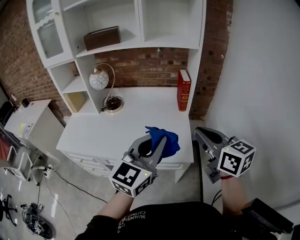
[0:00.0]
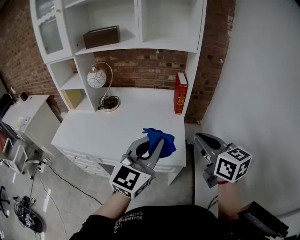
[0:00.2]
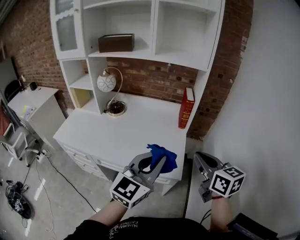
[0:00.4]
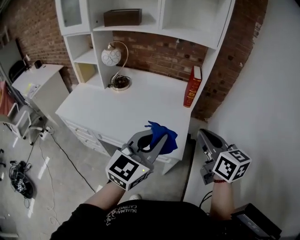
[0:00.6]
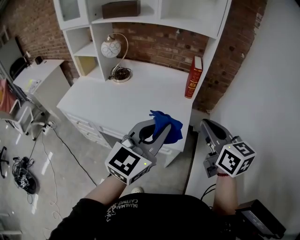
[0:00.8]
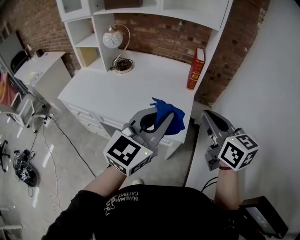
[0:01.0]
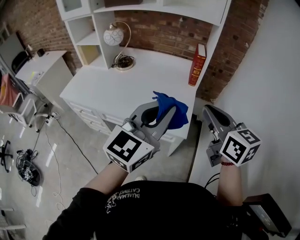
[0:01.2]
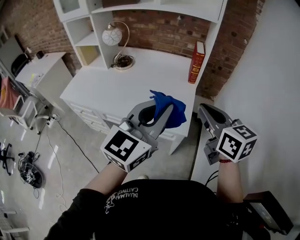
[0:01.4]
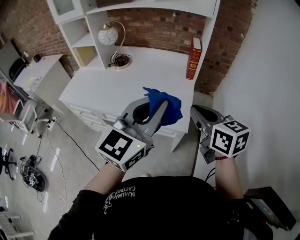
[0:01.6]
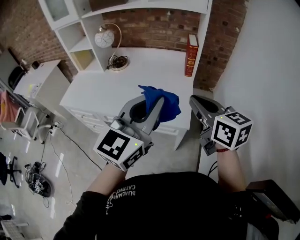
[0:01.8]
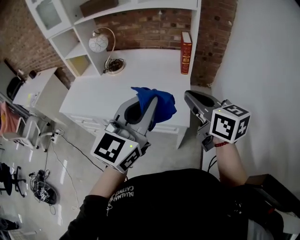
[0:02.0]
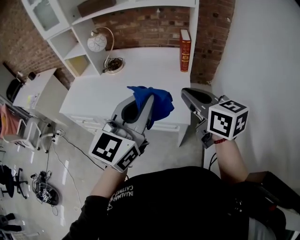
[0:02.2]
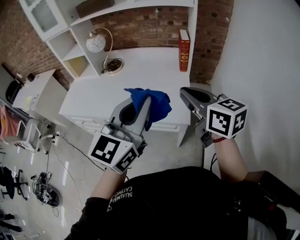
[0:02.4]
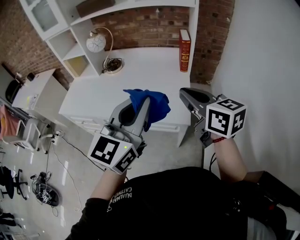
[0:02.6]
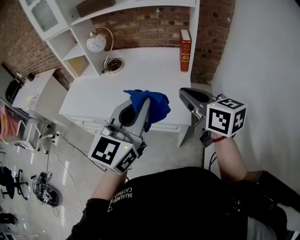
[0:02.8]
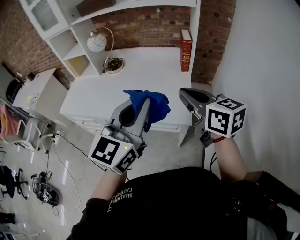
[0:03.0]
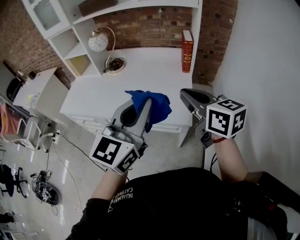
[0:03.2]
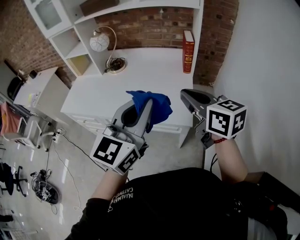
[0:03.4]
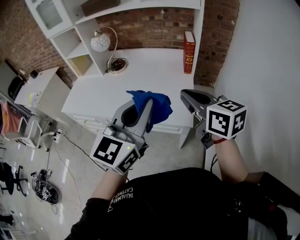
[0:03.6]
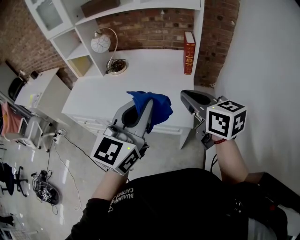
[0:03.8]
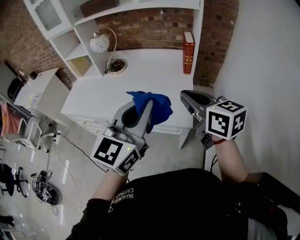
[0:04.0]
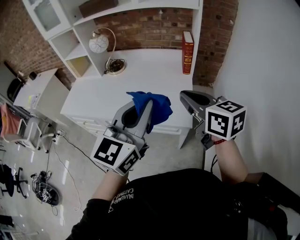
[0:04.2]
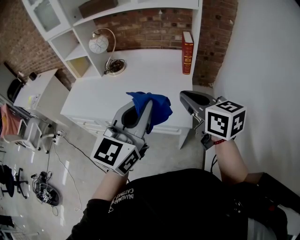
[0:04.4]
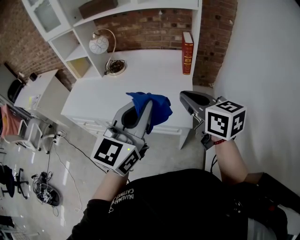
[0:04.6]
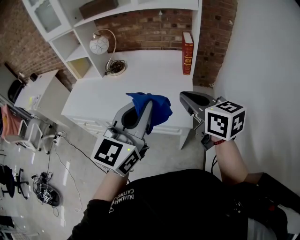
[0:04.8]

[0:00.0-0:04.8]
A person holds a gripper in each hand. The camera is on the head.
0:00.0 to 0:01.6: The left gripper shifts approximately 5 cm to the right; the right gripper goes some 5 cm downward.
0:01.6 to 0:03.2: The right gripper changes place by some 5 cm. The left gripper goes roughly 5 cm to the left.
0:03.2 to 0:04.8: Both grippers stay put.

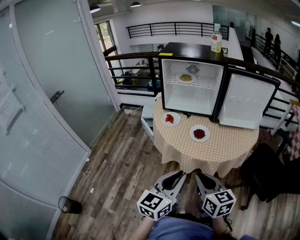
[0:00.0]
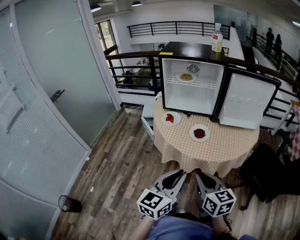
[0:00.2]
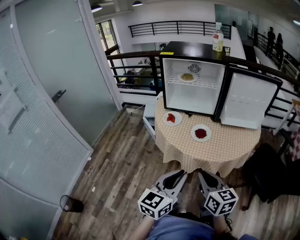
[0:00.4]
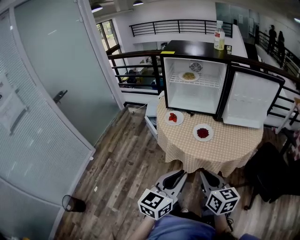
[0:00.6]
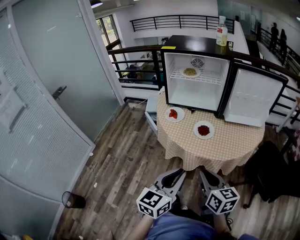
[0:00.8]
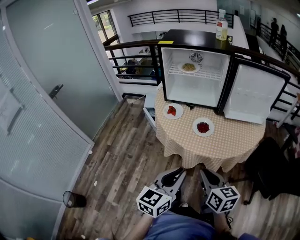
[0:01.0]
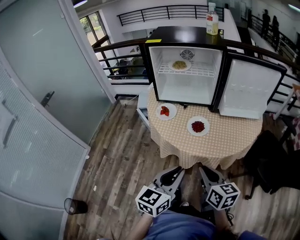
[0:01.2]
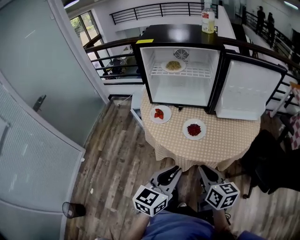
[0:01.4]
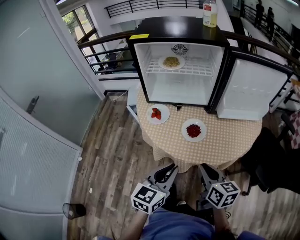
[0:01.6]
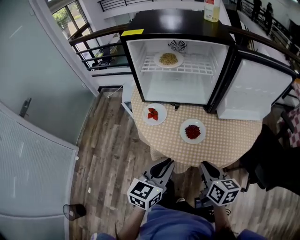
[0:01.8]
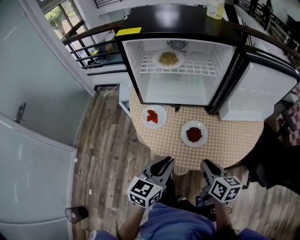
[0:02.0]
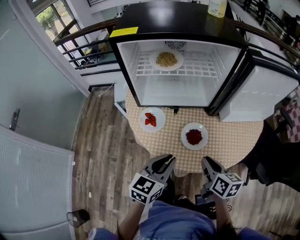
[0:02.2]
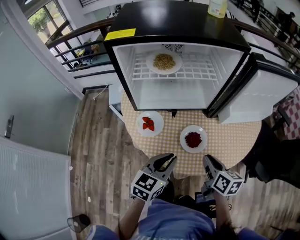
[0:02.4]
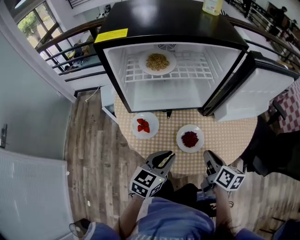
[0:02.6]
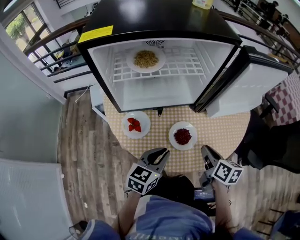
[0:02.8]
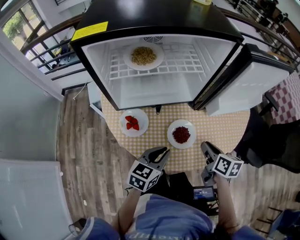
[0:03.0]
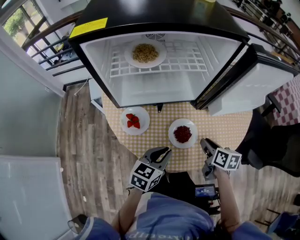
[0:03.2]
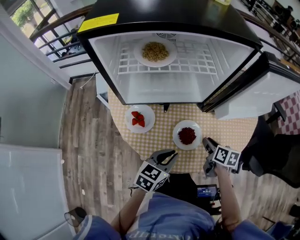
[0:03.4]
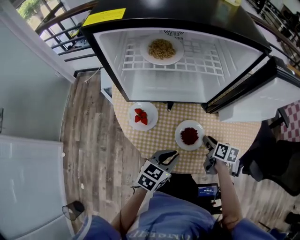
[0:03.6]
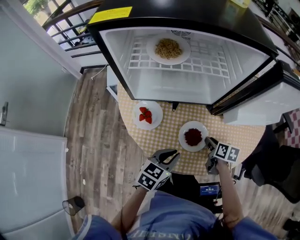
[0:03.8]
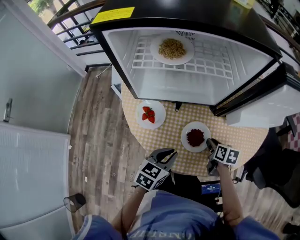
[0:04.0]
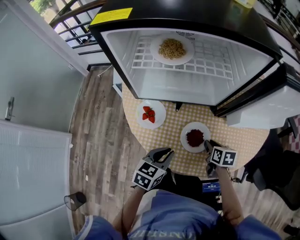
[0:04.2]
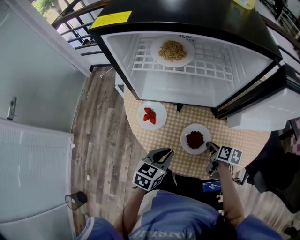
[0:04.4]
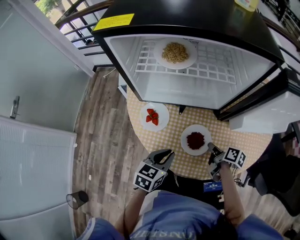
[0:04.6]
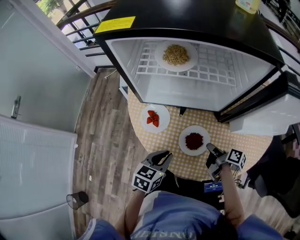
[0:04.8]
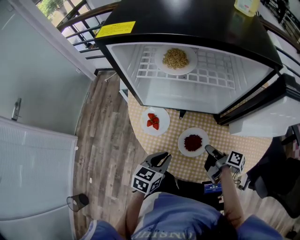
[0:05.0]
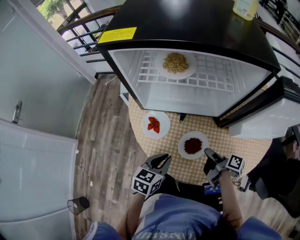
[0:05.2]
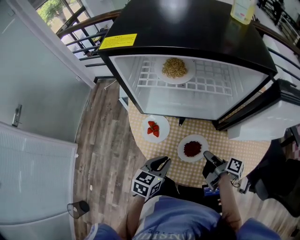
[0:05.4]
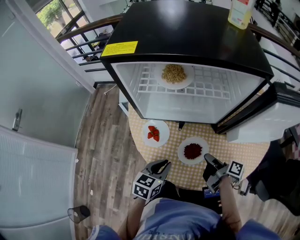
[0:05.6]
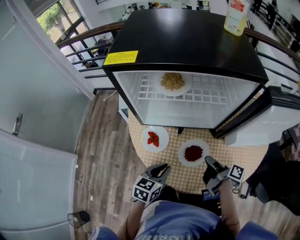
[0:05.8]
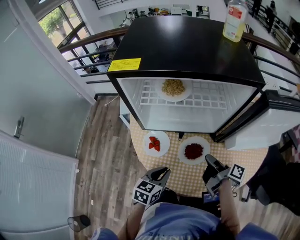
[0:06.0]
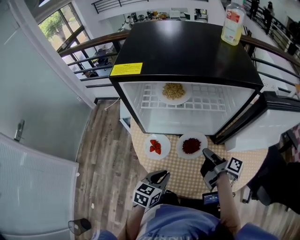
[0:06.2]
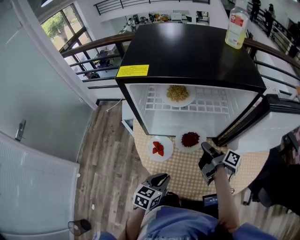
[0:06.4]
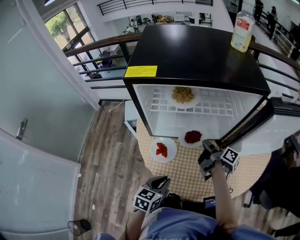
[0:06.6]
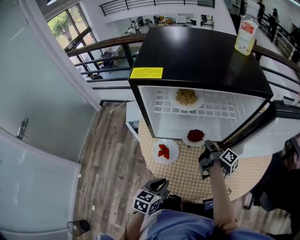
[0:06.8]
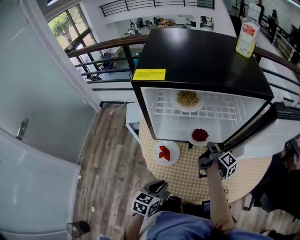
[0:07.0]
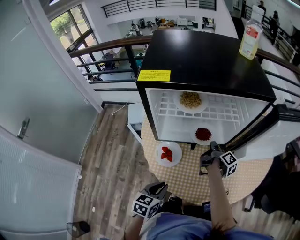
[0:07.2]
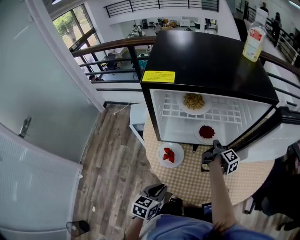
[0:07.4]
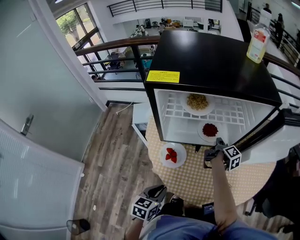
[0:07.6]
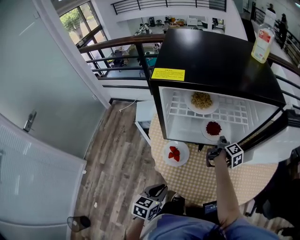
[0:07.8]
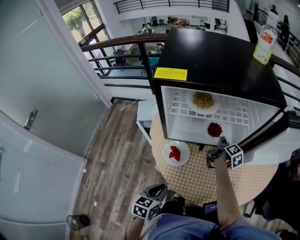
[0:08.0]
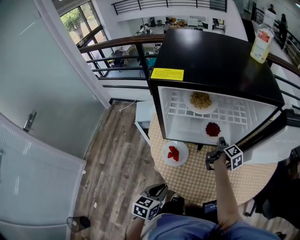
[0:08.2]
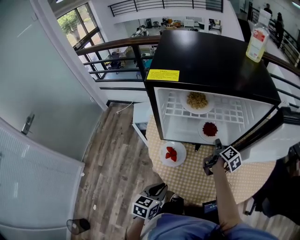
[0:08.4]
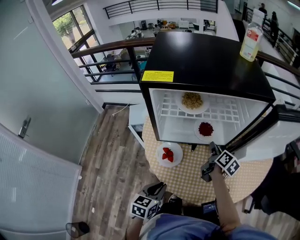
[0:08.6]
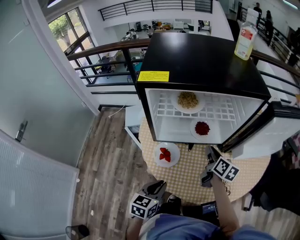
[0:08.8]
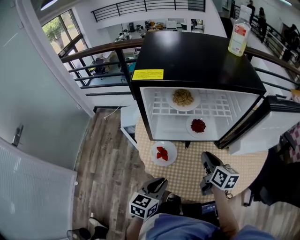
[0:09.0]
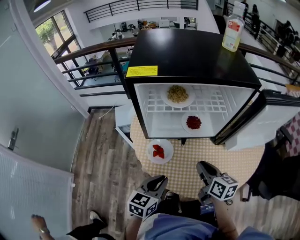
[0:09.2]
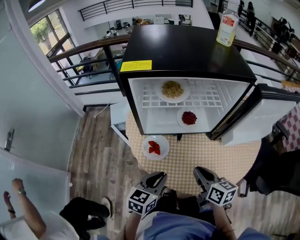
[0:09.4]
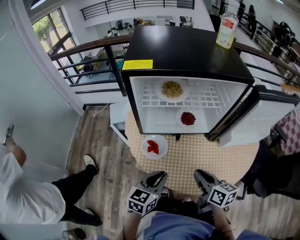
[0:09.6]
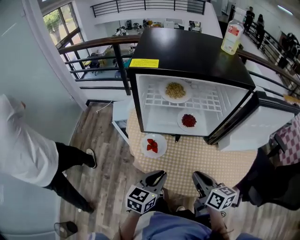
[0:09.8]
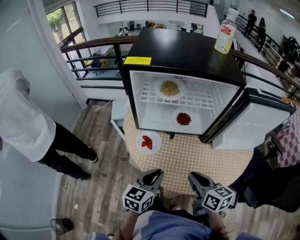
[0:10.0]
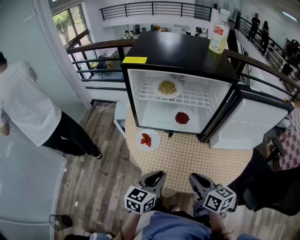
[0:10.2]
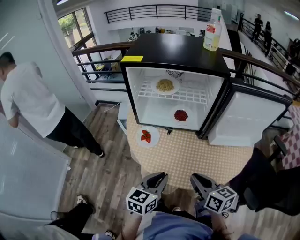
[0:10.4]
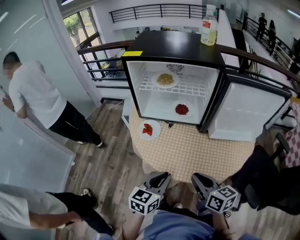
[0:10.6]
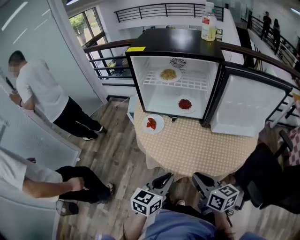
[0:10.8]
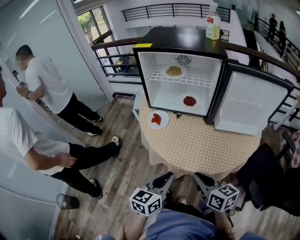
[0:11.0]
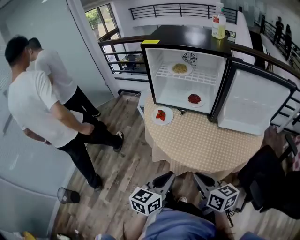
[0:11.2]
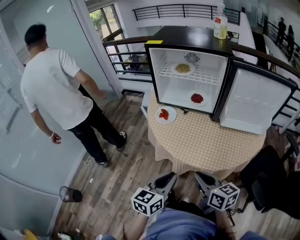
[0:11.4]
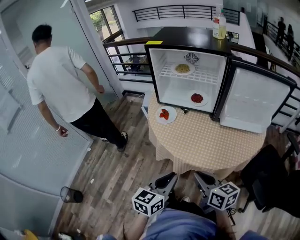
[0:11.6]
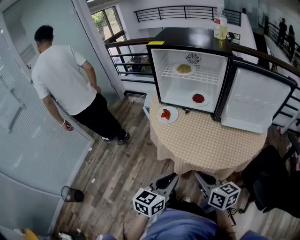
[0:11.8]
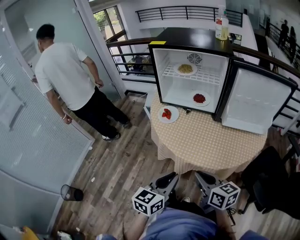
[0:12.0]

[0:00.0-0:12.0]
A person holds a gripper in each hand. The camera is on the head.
0:00.0 to 0:01.6: The two grippers go about 15 cm forward and downward.
0:01.6 to 0:03.0: Both grippers move forward and downward, some 20 cm. The right gripper swivels about 30 degrees, while the left gripper changes its angle by roughly 20 degrees.
0:03.0 to 0:04.4: The right gripper shifts some 15 cm downward and forward, and changes its angle by about 20 degrees.
0:04.4 to 0:06.0: The right gripper travels upward by roughly 15 cm, and angles its fingers upward, by about 30 degrees.
0:06.0 to 0:07.6: The left gripper travels to the left and backward by about 10 cm, while the right gripper travels forward by approximately 15 cm, and swivels approximately 40 degrees.
0:07.6 to 0:09.0: The left gripper heads upward, covering roughly 5 cm, while the right gripper travels backward and upward by approximately 15 cm, and rolls counterclockwise, seen from behind, by about 50 degrees.
0:09.0 to 0:10.4: The right gripper is displaced backward by some 20 cm, and swivels approximately 20 degrees. The left gripper heads to the right and backward, covering some 15 cm.
0:10.4 to 0:12.0: The grippers both shift backward by approximately 15 cm.

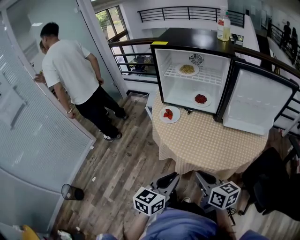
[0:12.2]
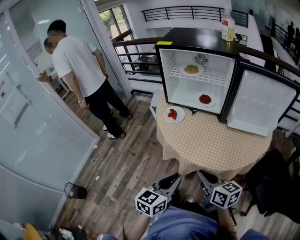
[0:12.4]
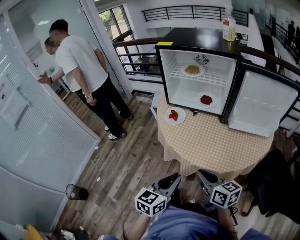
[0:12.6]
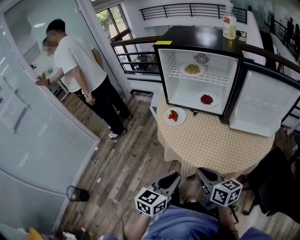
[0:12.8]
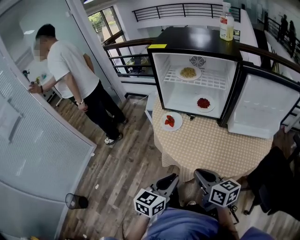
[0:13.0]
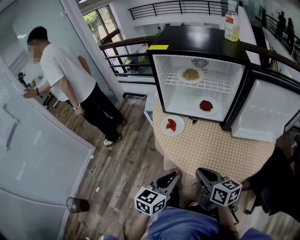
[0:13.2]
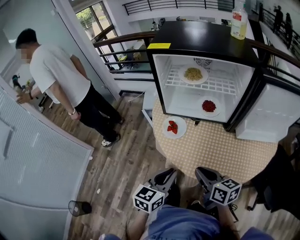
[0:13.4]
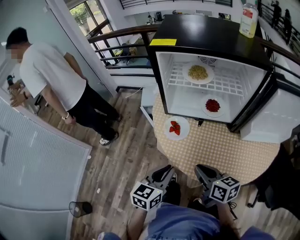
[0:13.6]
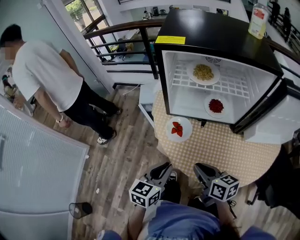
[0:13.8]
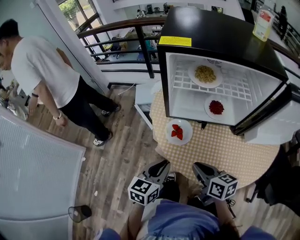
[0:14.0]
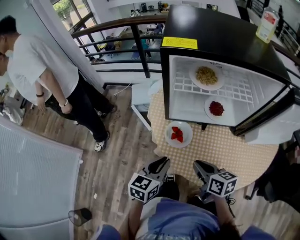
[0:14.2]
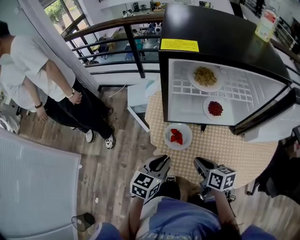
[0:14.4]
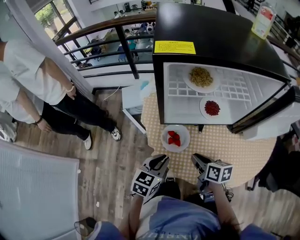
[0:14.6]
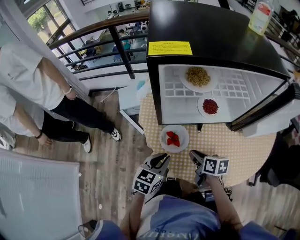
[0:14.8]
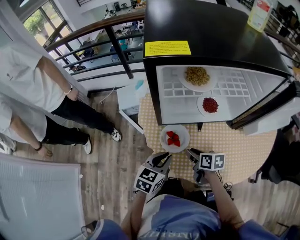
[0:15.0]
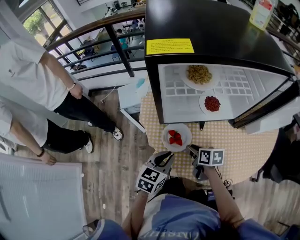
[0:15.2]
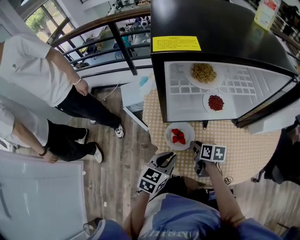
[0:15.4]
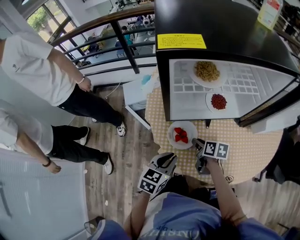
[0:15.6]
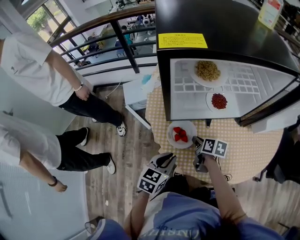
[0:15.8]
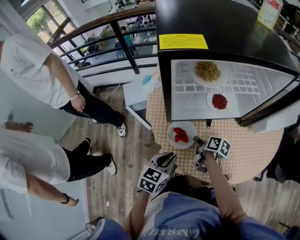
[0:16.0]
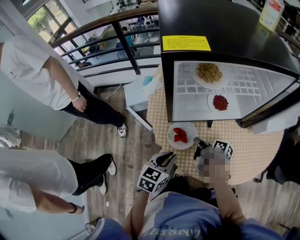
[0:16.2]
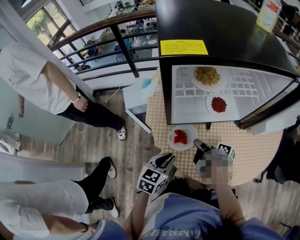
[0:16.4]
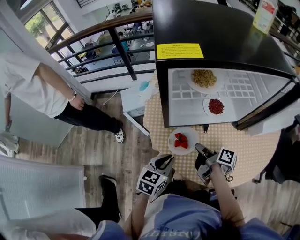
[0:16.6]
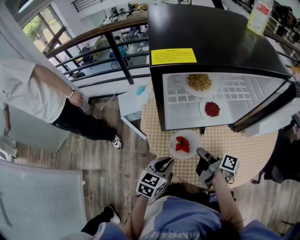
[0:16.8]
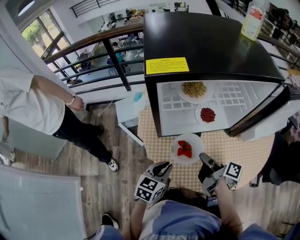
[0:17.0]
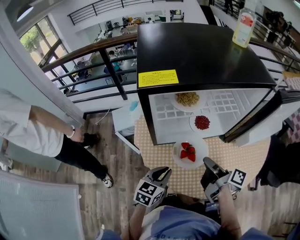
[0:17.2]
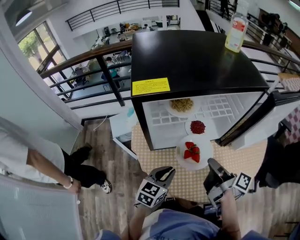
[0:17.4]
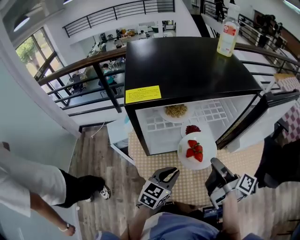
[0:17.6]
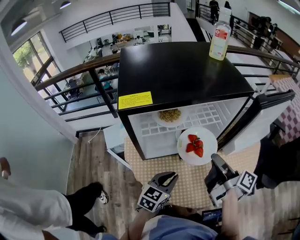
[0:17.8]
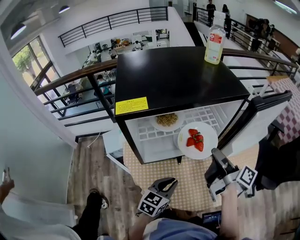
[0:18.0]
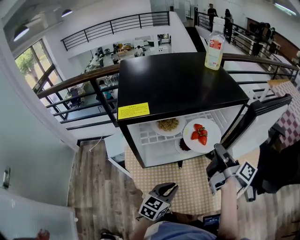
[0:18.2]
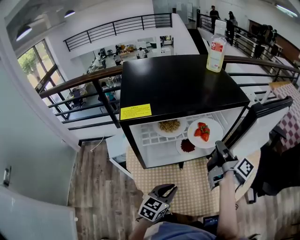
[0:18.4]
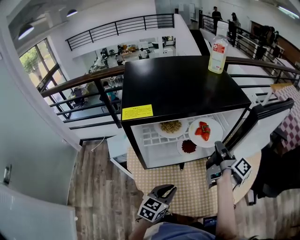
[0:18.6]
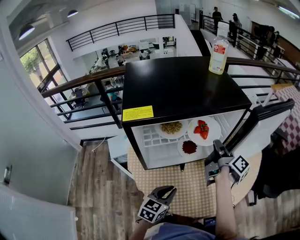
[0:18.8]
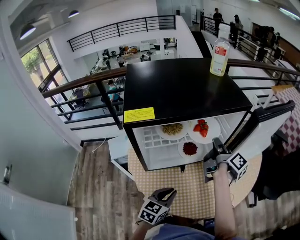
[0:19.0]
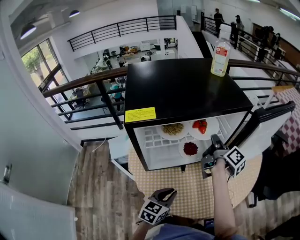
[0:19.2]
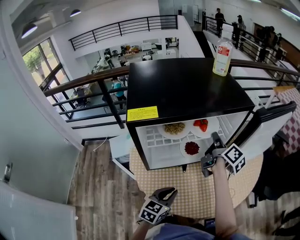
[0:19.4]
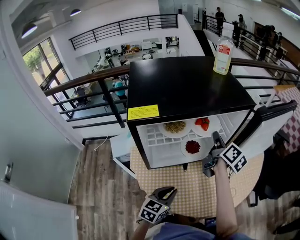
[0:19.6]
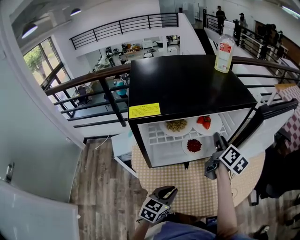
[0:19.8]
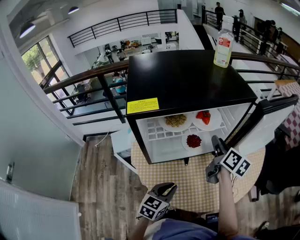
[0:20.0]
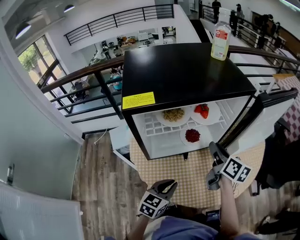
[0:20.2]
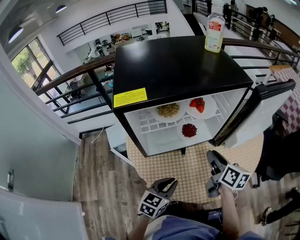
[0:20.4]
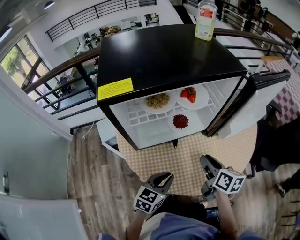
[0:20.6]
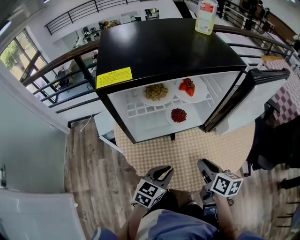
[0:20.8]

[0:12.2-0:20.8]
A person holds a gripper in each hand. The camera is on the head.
0:12.2 to 0:13.6: The right gripper moves forward, roughly 20 cm. Meanwhile the left gripper travels forward and to the left by approximately 25 cm.
0:13.6 to 0:15.0: Both grippers travel together forward and downward, roughly 20 cm. The right gripper changes its angle by some 30 degrees, while the left gripper changes its angle by approximately 20 degrees.
0:15.0 to 0:16.6: The right gripper shifts by approximately 5 cm, and changes its angle by some 40 degrees.
0:16.6 to 0:18.0: The left gripper moves to the right and upward, about 15 cm; the right gripper is displaced upward and to the right by roughly 25 cm, and turns by roughly 40 degrees.
0:18.0 to 0:19.4: The right gripper moves forward, some 10 cm, and turns by about 20 degrees.
0:19.4 to 0:20.8: The right gripper shifts some 25 cm backward and downward, and turns by some 40 degrees.
